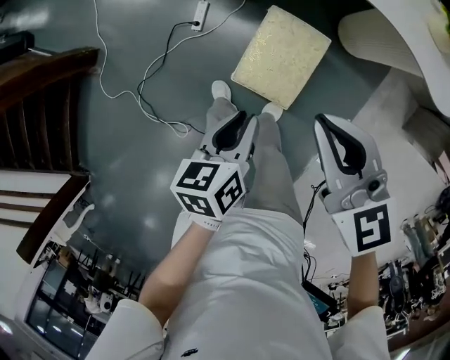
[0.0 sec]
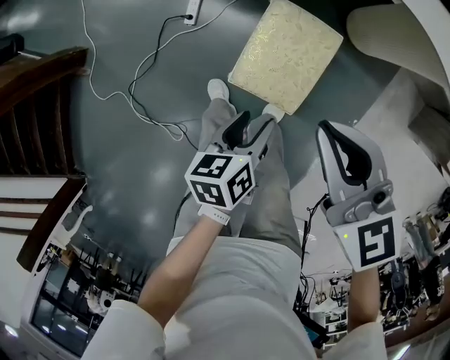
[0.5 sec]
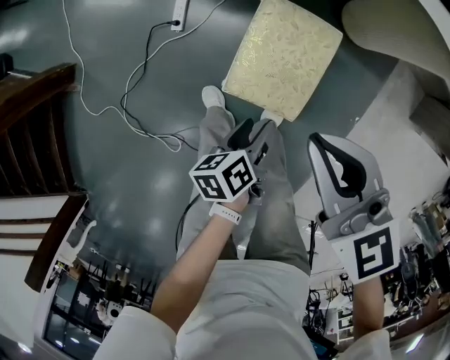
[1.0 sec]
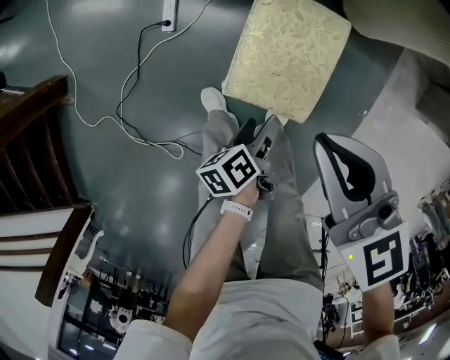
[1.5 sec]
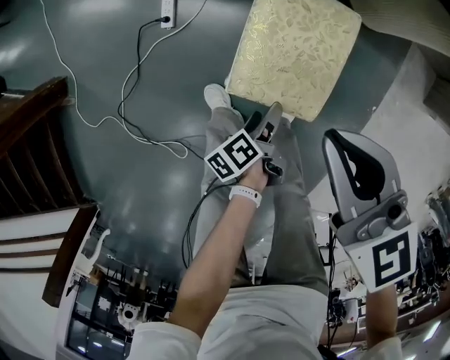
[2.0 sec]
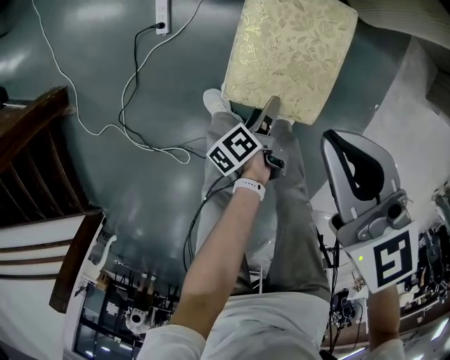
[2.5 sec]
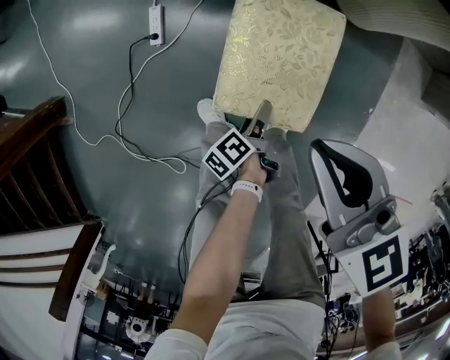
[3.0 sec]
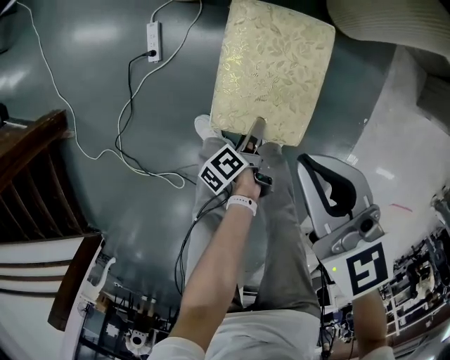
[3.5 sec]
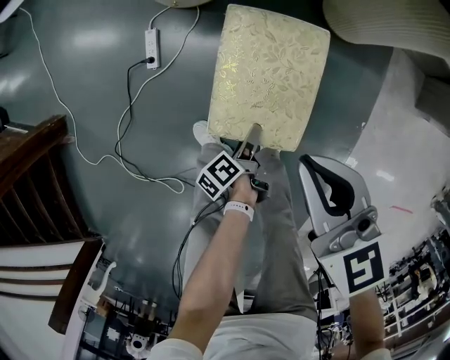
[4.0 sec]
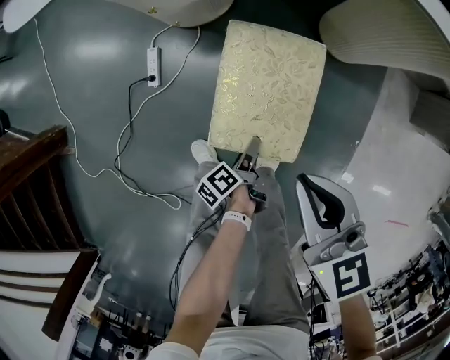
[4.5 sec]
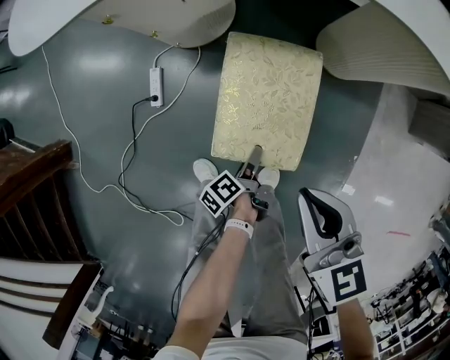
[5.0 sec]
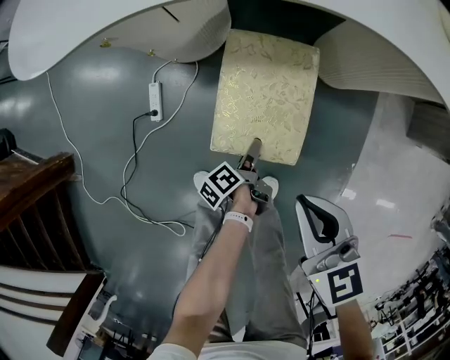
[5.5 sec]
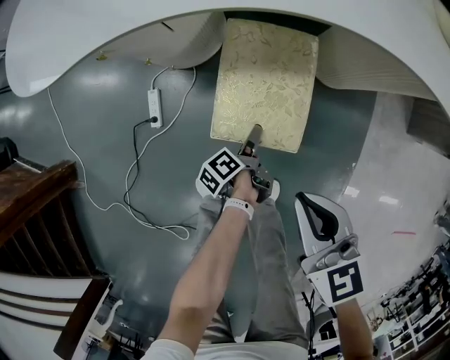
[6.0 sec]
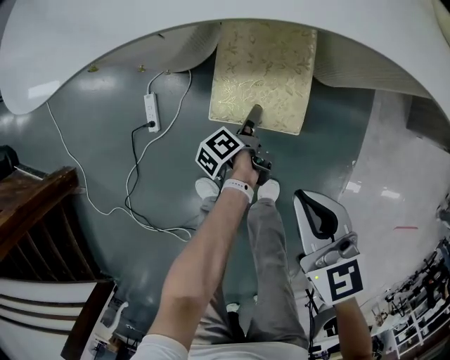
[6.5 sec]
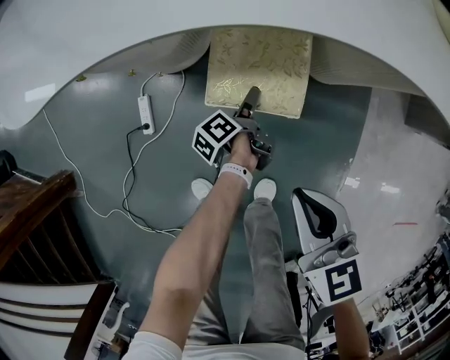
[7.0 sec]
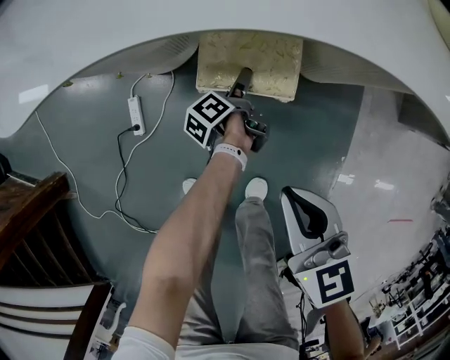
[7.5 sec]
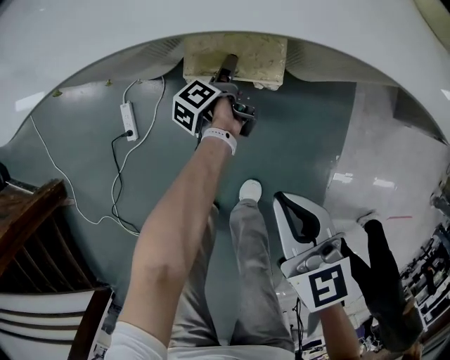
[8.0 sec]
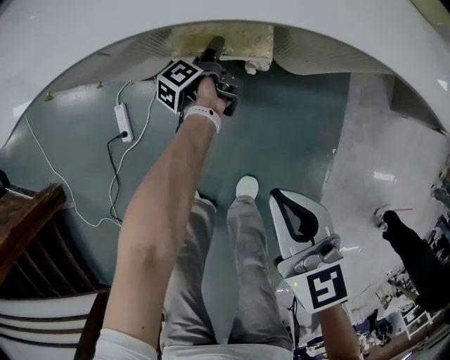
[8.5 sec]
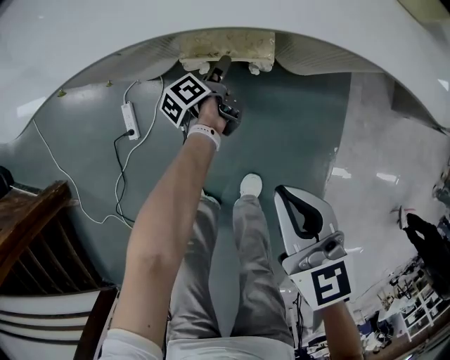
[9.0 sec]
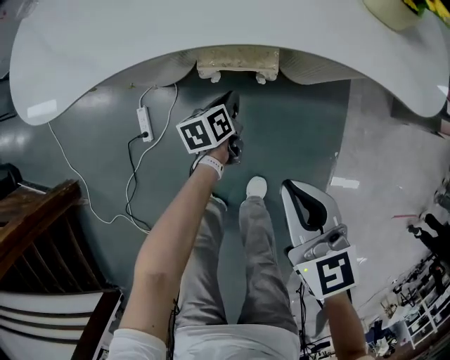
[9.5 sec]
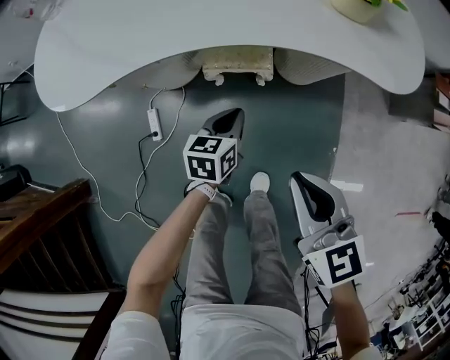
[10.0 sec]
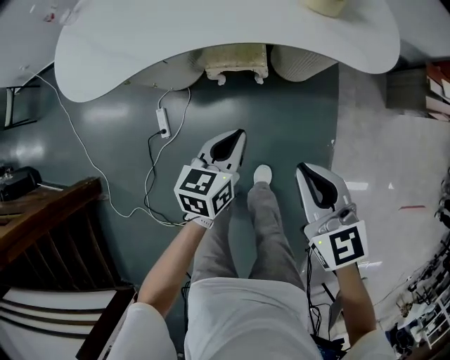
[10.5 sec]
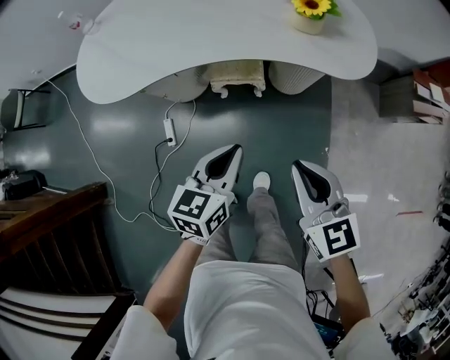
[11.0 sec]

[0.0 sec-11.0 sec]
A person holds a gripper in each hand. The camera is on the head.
0.0 sec to 2.0 sec: The right gripper travels downward by about 20 cm; the left gripper heads downward, covering approximately 35 cm, twists about 40 degrees counterclockwise, seen from behind, and opens.
2.0 sec to 3.5 sec: The left gripper shifts by some 5 cm.
3.5 sec to 5.5 sec: The right gripper shifts approximately 5 cm backward.
5.5 sec to 7.5 sec: The left gripper is displaced forward by approximately 25 cm. The right gripper shifts some 10 cm forward.
7.5 sec to 9.0 sec: The left gripper travels forward by about 5 cm.
9.0 sec to 11.0 sec: The left gripper travels upward and backward by roughly 50 cm, rotates around the line of its fingers by approximately 70 degrees, clockwise from behind, and closes its fingers, while the right gripper travels upward by about 25 cm.

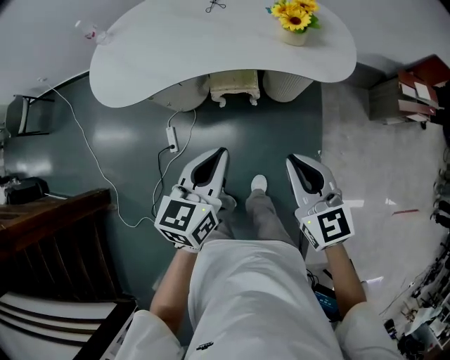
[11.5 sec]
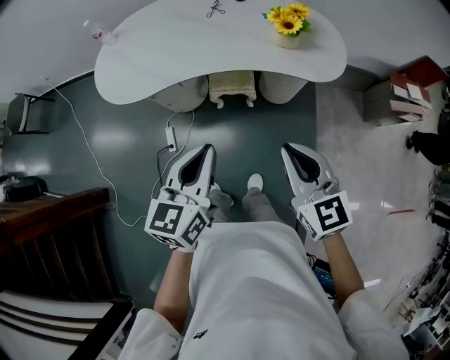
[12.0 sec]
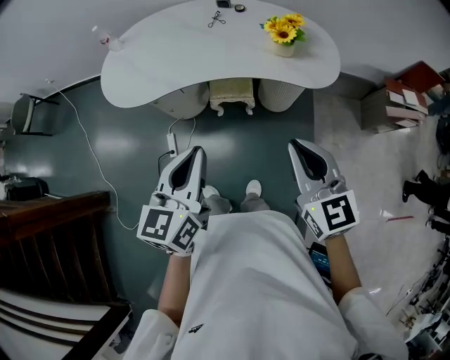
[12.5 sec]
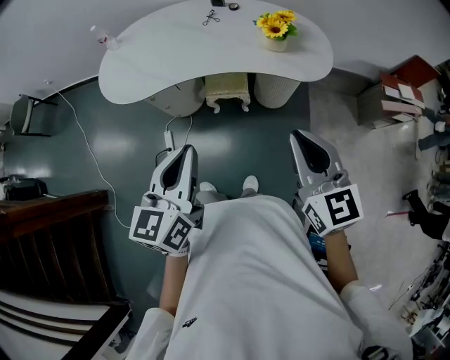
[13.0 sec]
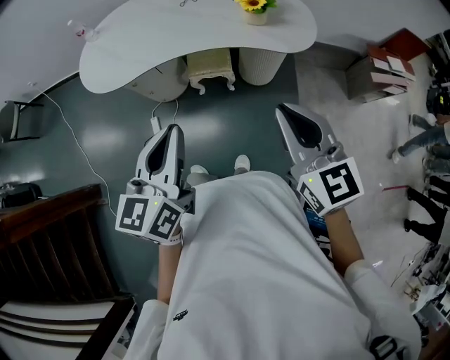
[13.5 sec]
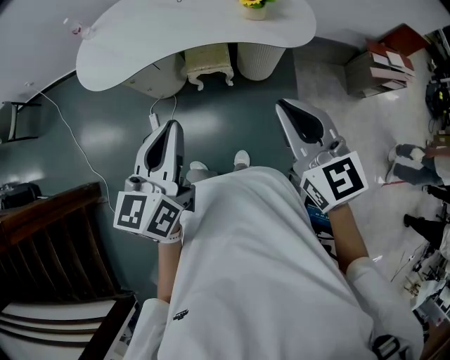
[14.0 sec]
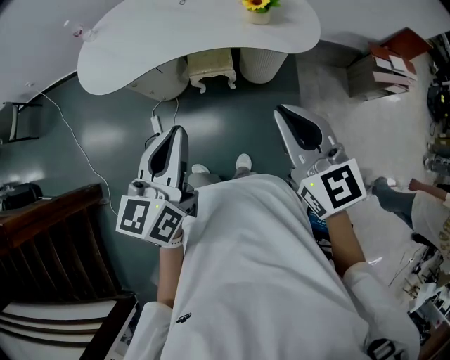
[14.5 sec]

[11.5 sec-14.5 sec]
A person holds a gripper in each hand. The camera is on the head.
11.5 sec to 13.0 sec: The right gripper moves upward, some 10 cm; the left gripper shifts about 15 cm upward and backward.
13.0 sec to 14.5 sec: The grippers stay close to where they were, moving slightly.

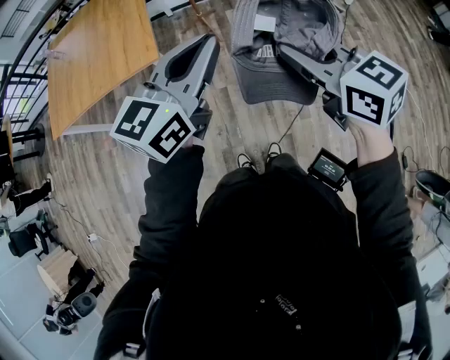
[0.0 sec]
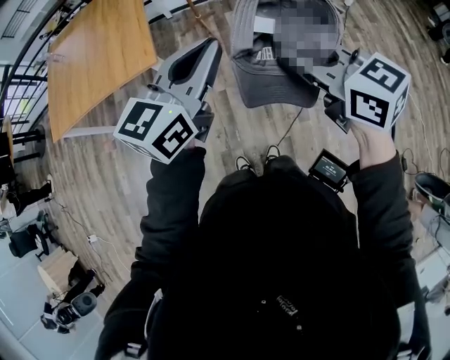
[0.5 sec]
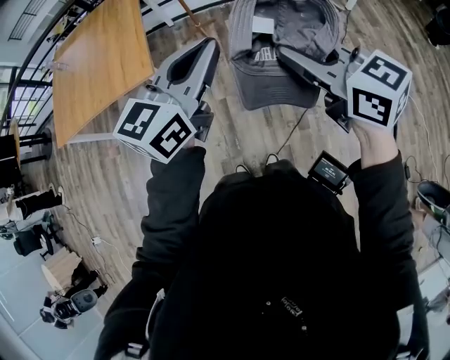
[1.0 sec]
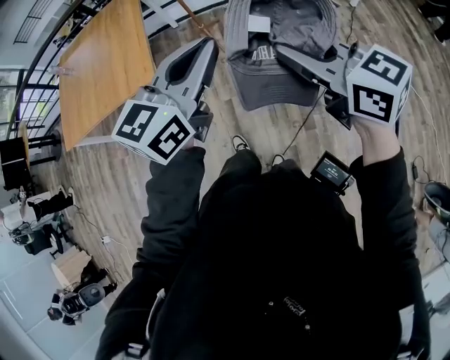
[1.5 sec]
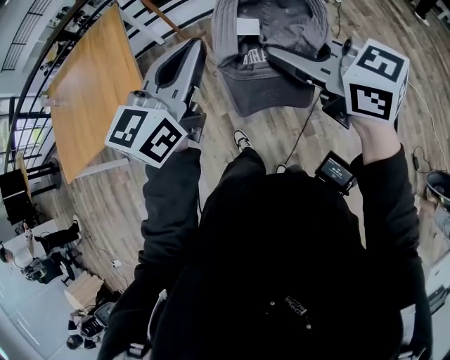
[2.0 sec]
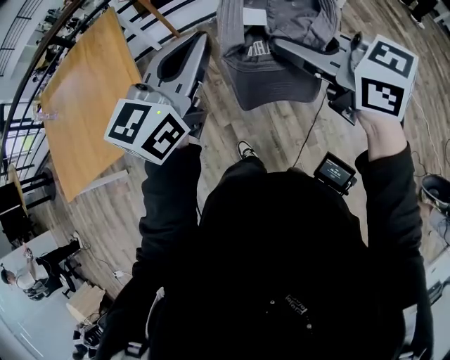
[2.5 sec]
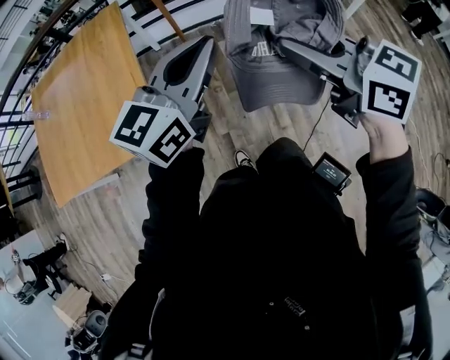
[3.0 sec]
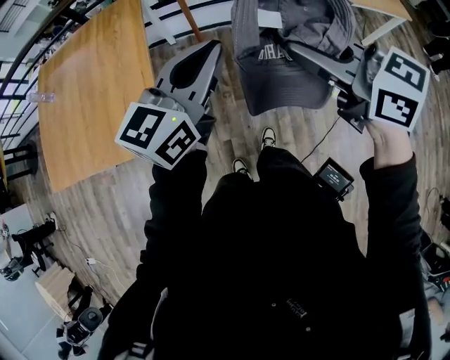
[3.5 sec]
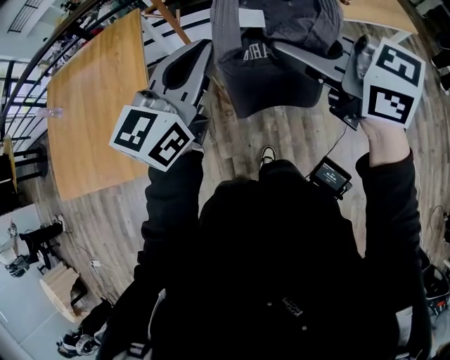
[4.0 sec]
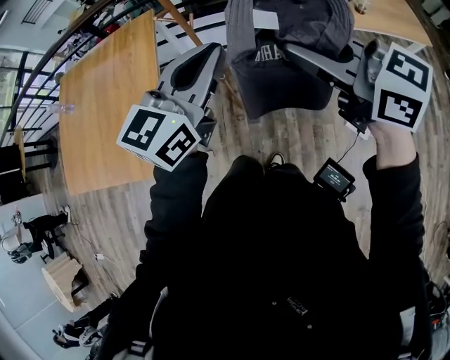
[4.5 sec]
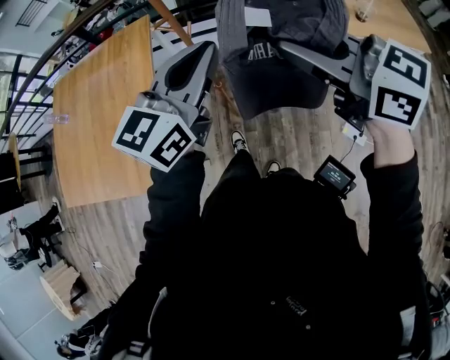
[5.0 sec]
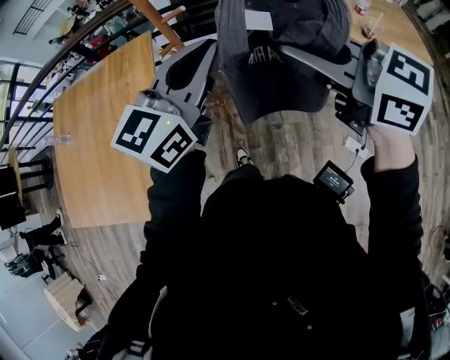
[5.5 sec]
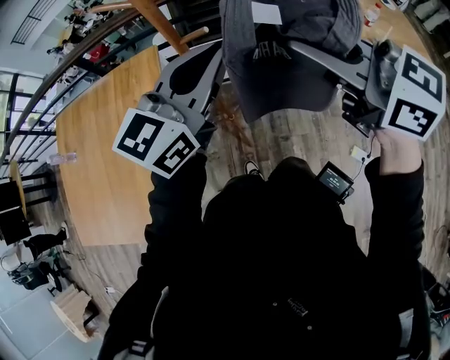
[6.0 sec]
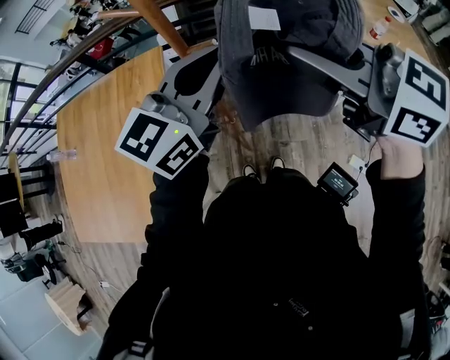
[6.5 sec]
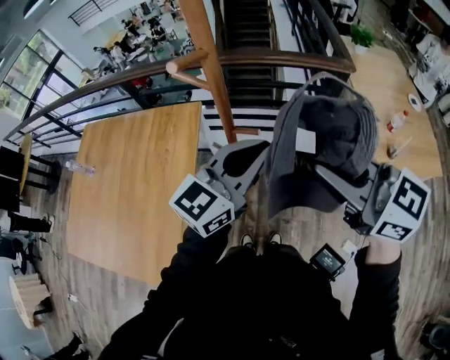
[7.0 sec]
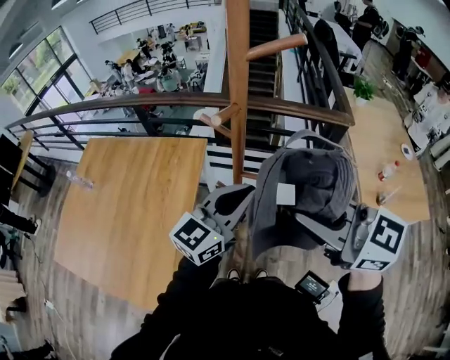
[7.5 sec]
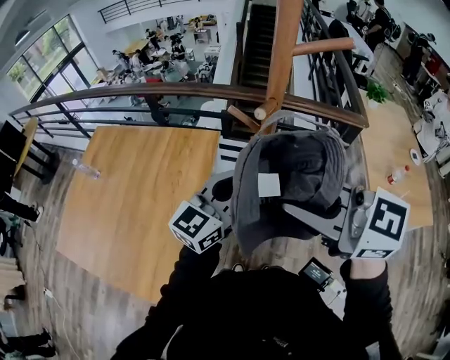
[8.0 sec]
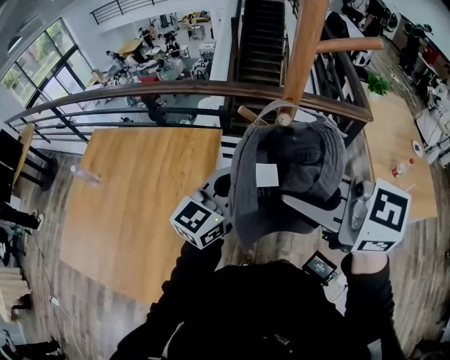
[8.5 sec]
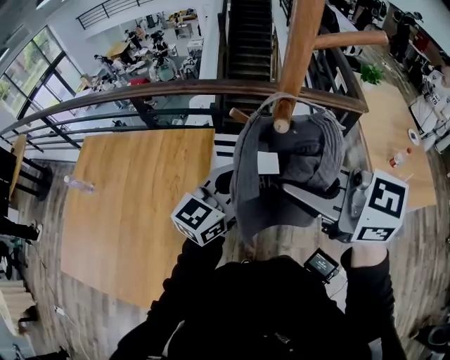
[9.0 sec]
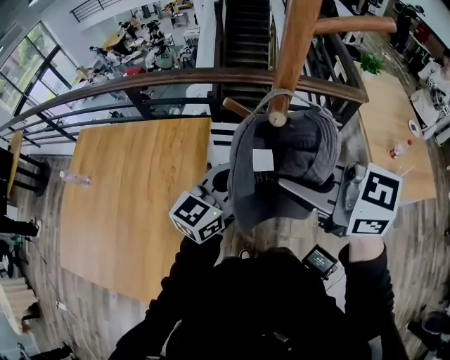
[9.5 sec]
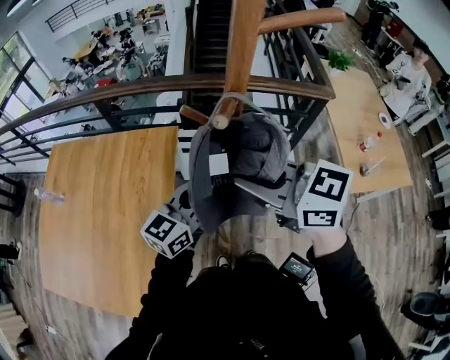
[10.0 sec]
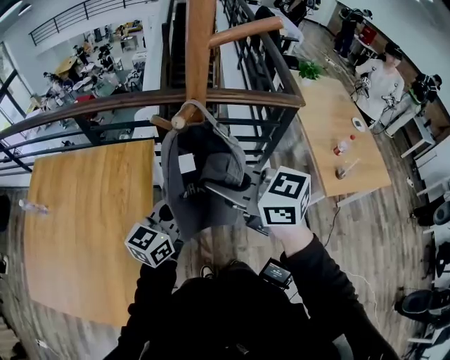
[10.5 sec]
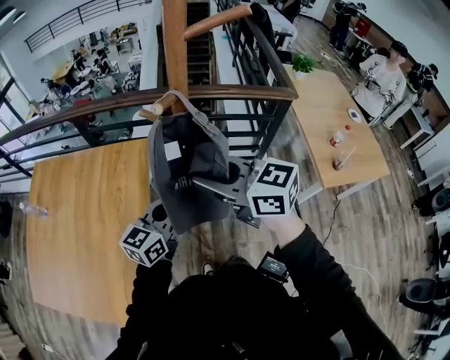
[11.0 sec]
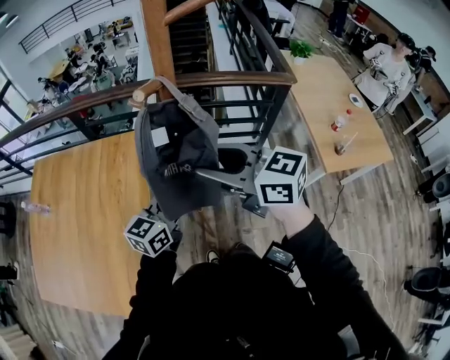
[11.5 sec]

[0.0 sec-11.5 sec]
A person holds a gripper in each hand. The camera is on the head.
0.0 sec to 2.0 sec: Both grippers travel together forward and to the right, roughly 15 cm.
2.0 sec to 4.0 sec: The right gripper moves some 5 cm.
4.0 sec to 6.0 sec: The right gripper goes about 5 cm upward. The left gripper ends up some 5 cm from where it was.
6.0 sec to 7.5 sec: The left gripper changes place by some 5 cm. The right gripper moves approximately 5 cm.
7.5 sec to 9.5 sec: The right gripper is displaced forward, to the left and downward by roughly 15 cm; the left gripper shifts roughly 15 cm forward, downward and to the left.
9.5 sec to 11.5 sec: The left gripper travels downward and backward by approximately 15 cm, while the right gripper travels downward by roughly 10 cm, and opens its fingers.

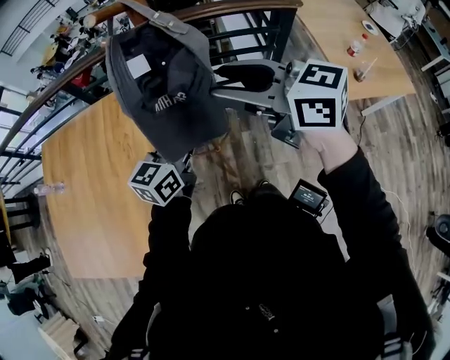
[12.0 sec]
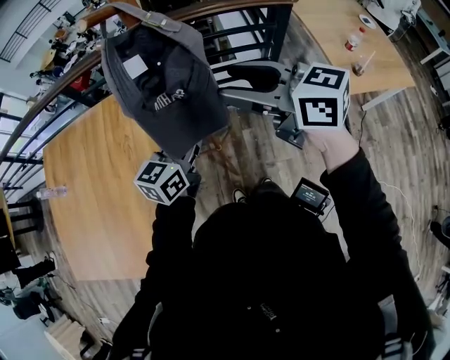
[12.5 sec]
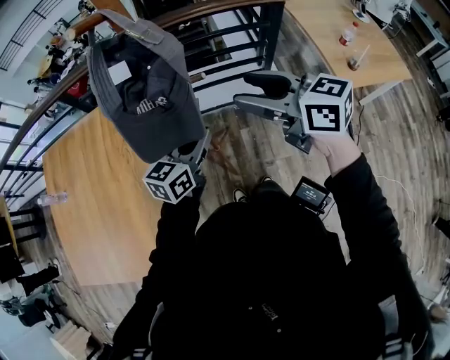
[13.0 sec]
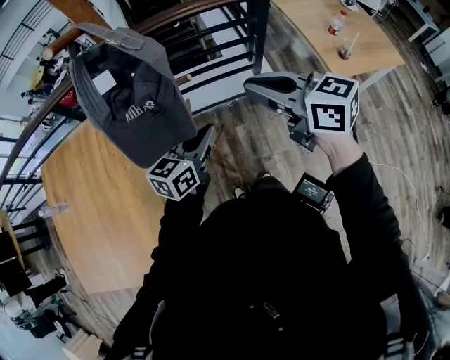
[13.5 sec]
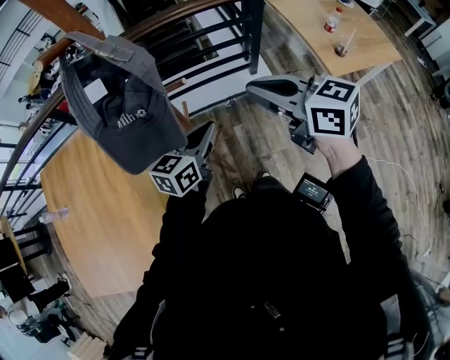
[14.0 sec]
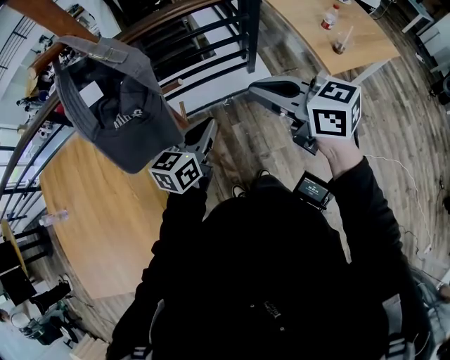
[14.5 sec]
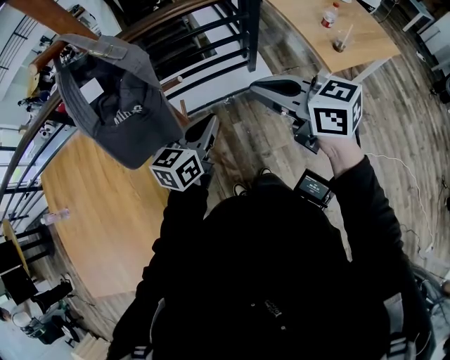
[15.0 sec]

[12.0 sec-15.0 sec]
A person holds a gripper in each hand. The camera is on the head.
12.0 sec to 13.5 sec: Both grippers move to the right and downward, some 10 cm. The right gripper closes its fingers.
13.5 sec to 15.0 sec: The grippers stay close to where they were, moving slightly.
